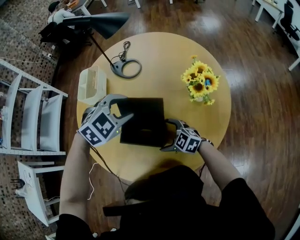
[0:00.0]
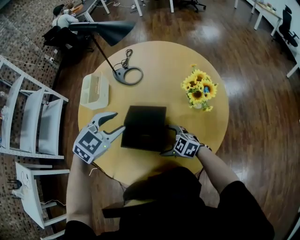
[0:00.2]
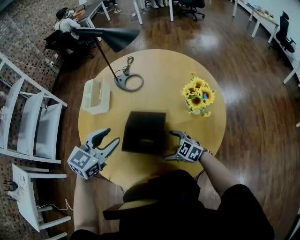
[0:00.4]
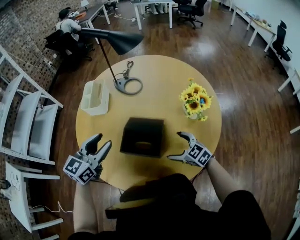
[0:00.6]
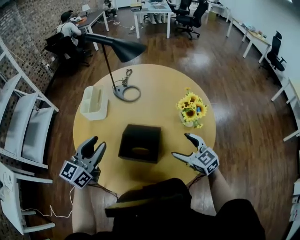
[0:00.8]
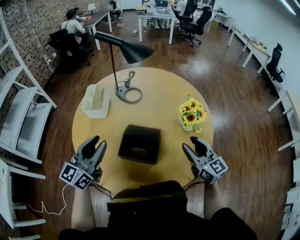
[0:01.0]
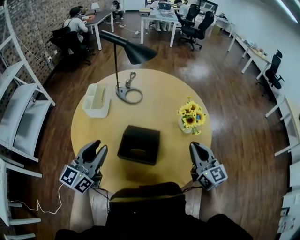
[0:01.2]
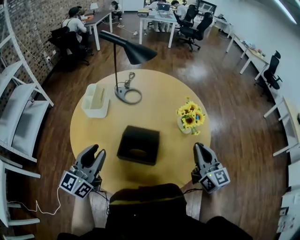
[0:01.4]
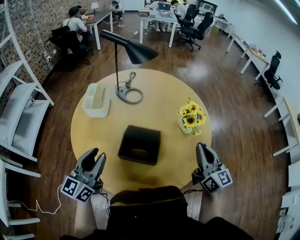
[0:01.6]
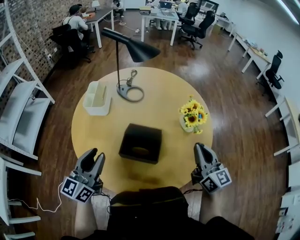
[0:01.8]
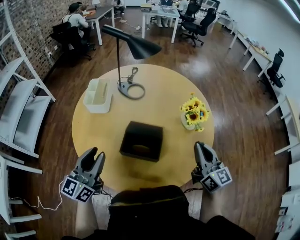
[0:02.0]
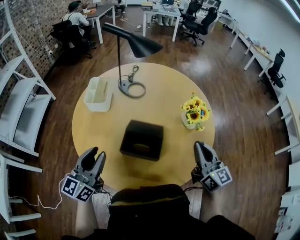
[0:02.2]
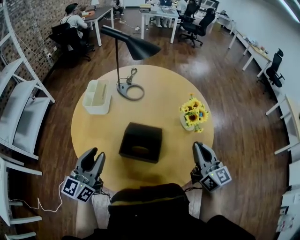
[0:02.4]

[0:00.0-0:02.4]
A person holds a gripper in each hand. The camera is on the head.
0.0 to 1.2 s: The left gripper travels to the left and backward by about 20 cm, and points its fingers roughly 50 degrees further upward. The right gripper travels upward and to the right by about 30 cm, tilts its fingers some 30 degrees upward, and closes.
1.2 to 2.4 s: There are only small adjustments of the grippers.

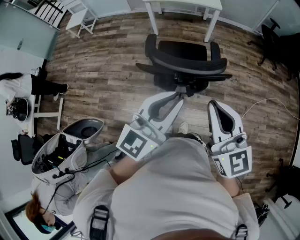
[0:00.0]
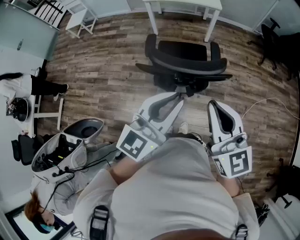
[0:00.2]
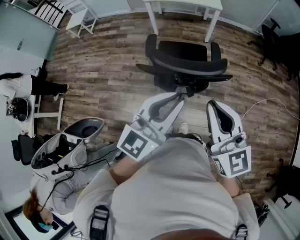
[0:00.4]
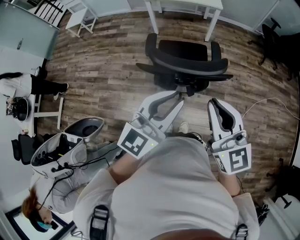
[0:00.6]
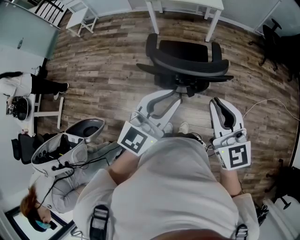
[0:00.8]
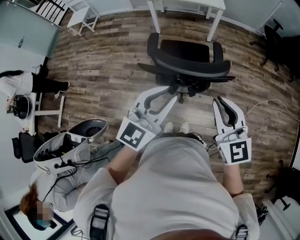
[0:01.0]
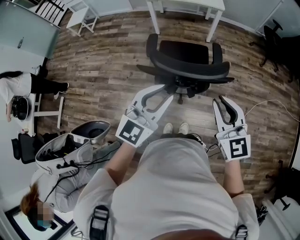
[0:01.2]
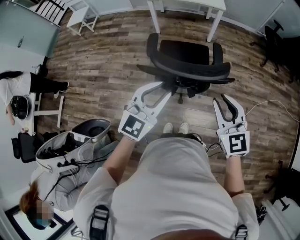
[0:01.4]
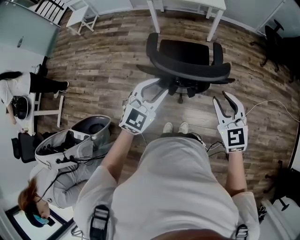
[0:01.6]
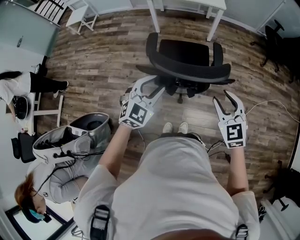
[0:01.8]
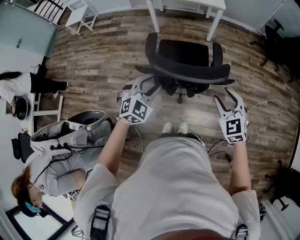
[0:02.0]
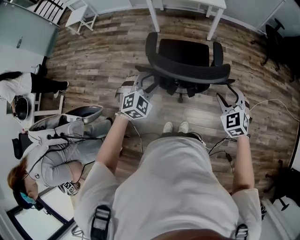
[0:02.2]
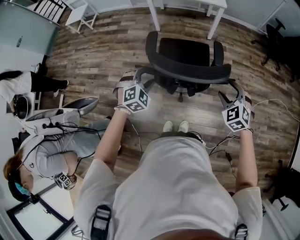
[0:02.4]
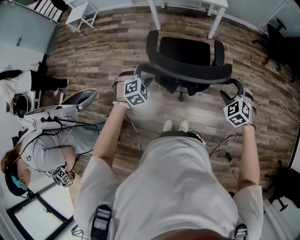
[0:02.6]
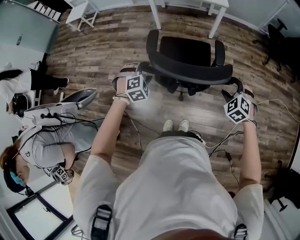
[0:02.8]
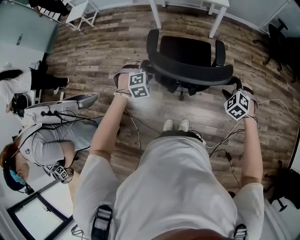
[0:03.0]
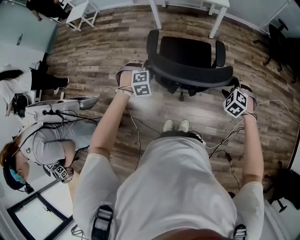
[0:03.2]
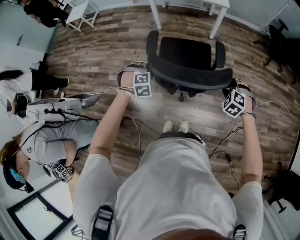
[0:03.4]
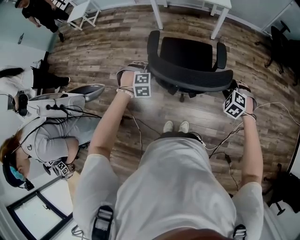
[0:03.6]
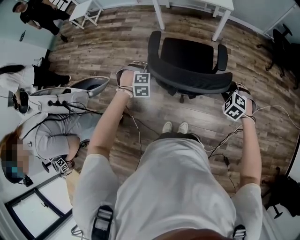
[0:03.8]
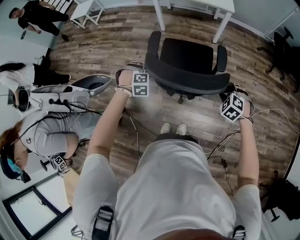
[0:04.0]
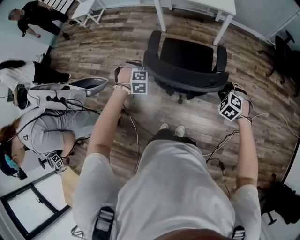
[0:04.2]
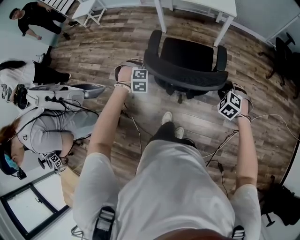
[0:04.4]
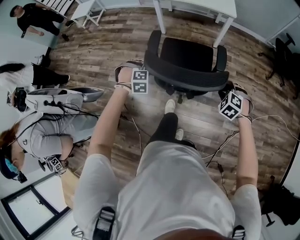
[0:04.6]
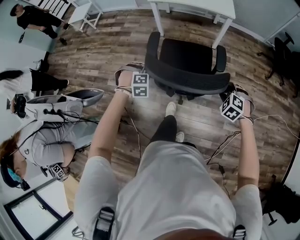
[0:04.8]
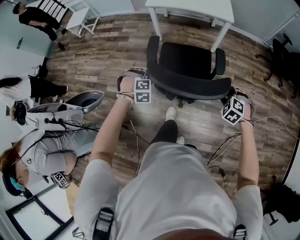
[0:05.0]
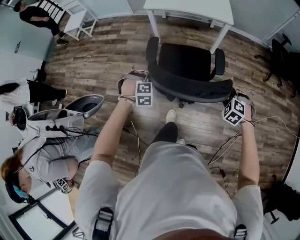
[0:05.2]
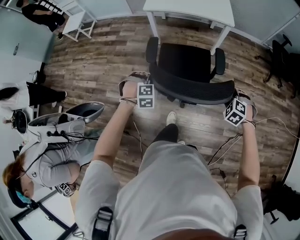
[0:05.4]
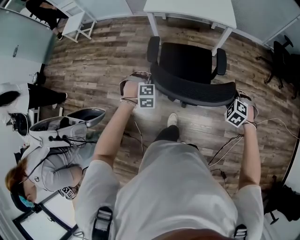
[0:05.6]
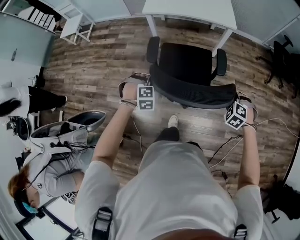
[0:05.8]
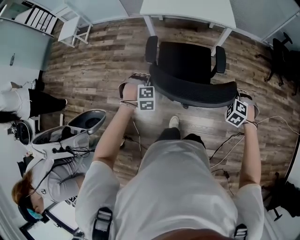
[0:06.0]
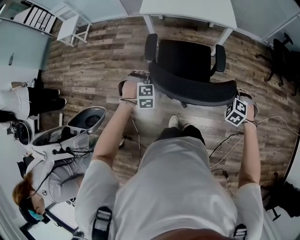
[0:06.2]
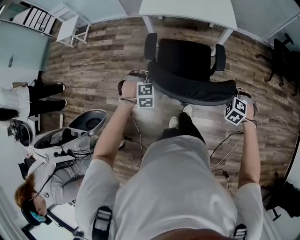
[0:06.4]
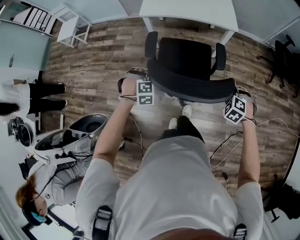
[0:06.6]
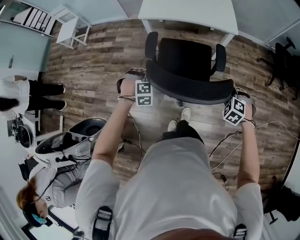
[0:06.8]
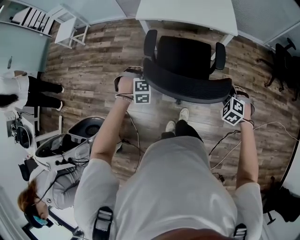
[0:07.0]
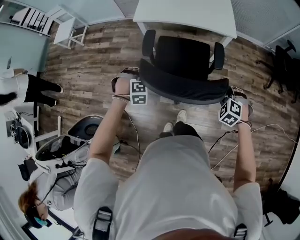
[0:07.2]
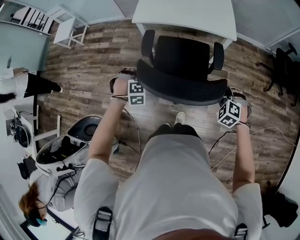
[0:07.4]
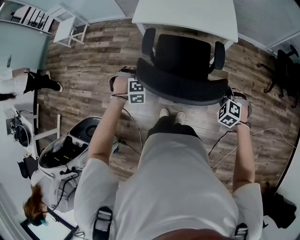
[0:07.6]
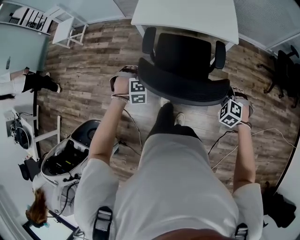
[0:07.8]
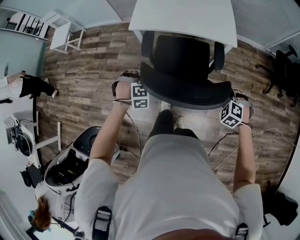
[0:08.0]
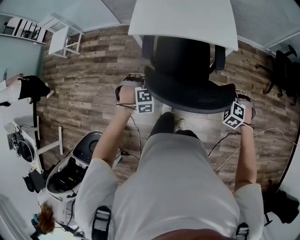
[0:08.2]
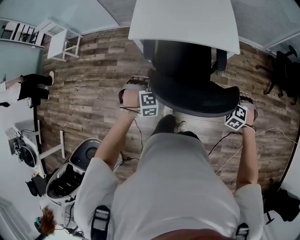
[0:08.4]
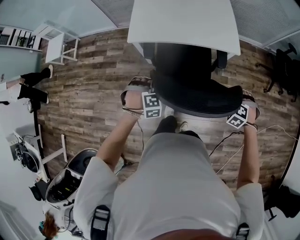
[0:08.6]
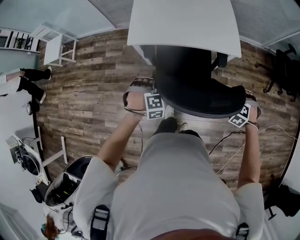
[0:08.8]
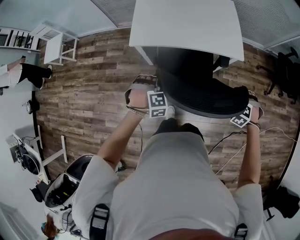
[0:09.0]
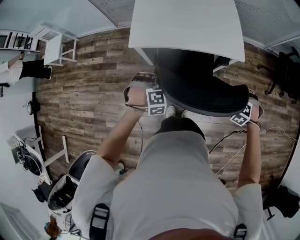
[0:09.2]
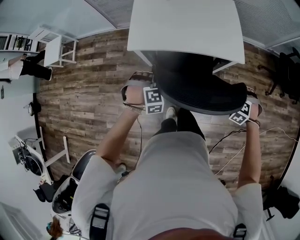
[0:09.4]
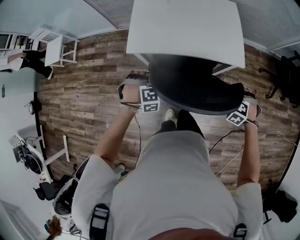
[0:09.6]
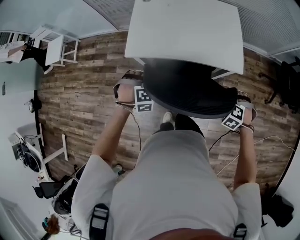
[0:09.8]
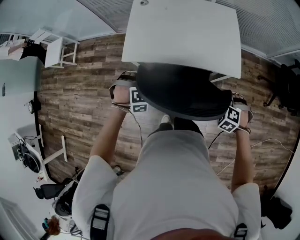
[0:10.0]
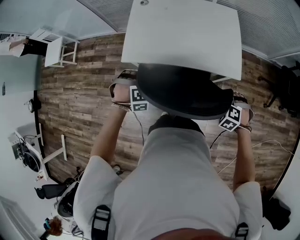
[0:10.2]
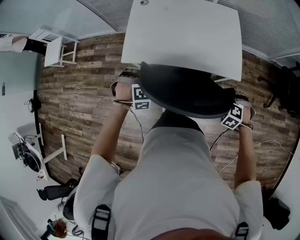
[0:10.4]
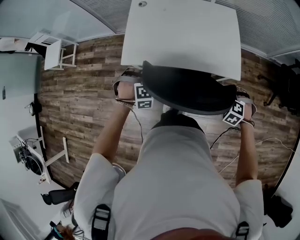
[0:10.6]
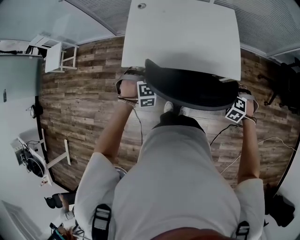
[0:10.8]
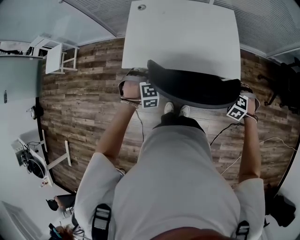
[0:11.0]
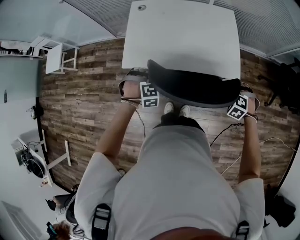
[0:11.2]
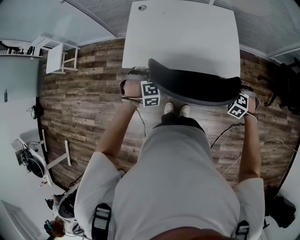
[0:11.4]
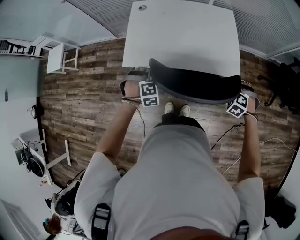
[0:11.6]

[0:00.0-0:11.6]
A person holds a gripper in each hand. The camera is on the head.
0.0 to 1.4 s: Both grippers move downward and forward, about 10 cm. The left gripper rotates some 20 degrees.
1.4 to 2.8 s: The right gripper shifts some 20 cm downward, forward and to the right, tilts its fingers roughly 40 degrees downward, and opens; the left gripper moves downward, forward and to the left, about 25 cm, points its fingers approximately 50 degrees further downward, and opens up.
2.8 to 4.4 s: The right gripper travels forward and downward by approximately 10 cm, while the left gripper moves downward and forward, some 10 cm, and closes.
4.4 to 5.8 s: The grippers both shift forward by some 15 cm.
5.8 to 7.2 s: The grippers both shift forward by approximately 15 cm.
7.2 to 8.8 s: Both grippers travel together forward, roughly 20 cm.
8.8 to 10.2 s: Both grippers travel together forward, roughly 15 cm.
10.2 to 11.6 s: The left gripper changes place by about 5 cm. The right gripper goes roughly 5 cm to the right.

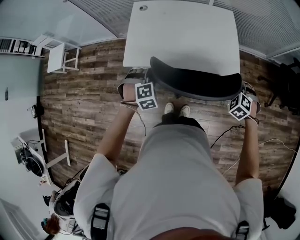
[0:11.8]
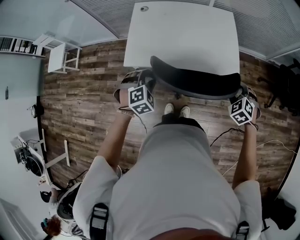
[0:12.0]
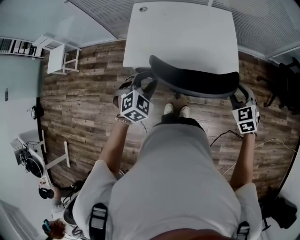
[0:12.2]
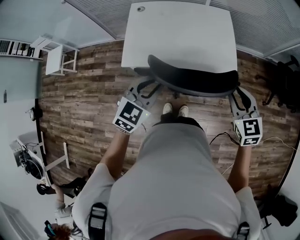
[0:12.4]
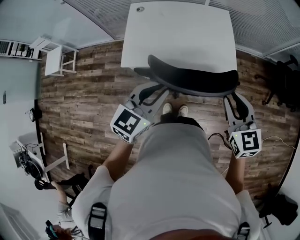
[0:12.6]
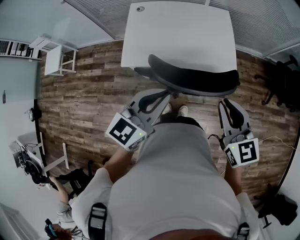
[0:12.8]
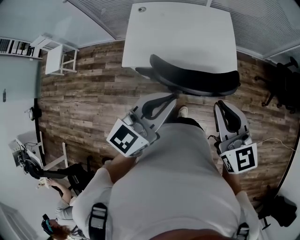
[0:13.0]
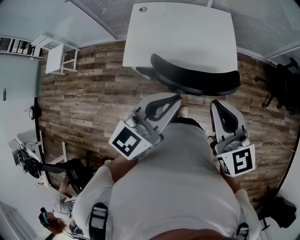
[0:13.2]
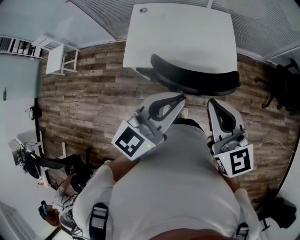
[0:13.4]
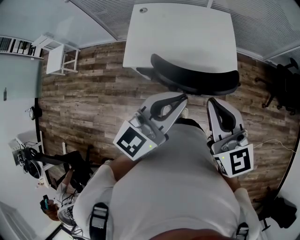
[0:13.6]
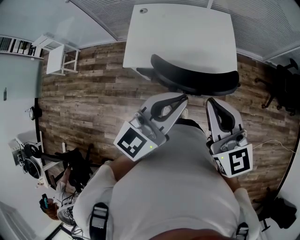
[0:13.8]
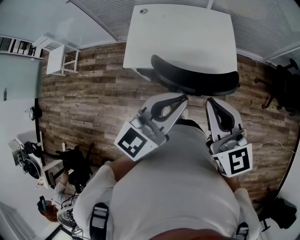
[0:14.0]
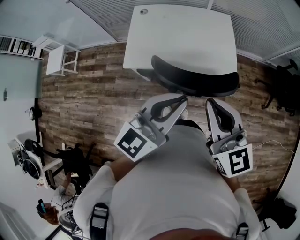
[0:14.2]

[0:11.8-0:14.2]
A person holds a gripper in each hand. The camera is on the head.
11.8 to 13.0 s: The left gripper moves upward, approximately 30 cm, tips its fingers upward by some 60 degrees, and closes its fingers, while the right gripper heads upward, to the left and backward, covering approximately 35 cm, points its fingers some 50 degrees further upward, and closes up.
13.0 to 14.2 s: The right gripper ends up approximately 5 cm from where it was.

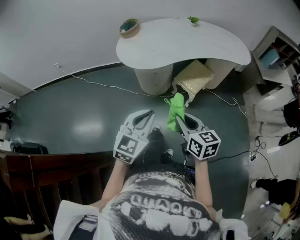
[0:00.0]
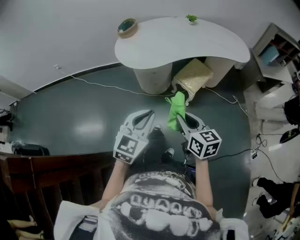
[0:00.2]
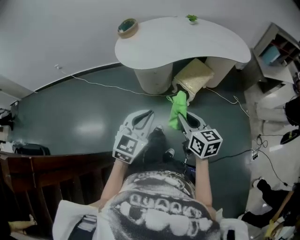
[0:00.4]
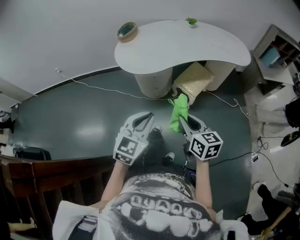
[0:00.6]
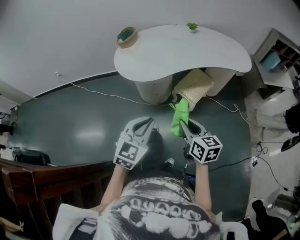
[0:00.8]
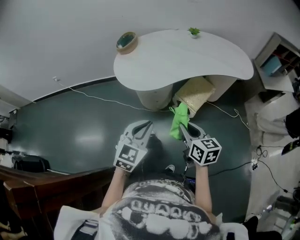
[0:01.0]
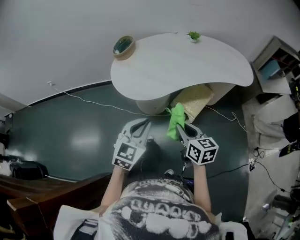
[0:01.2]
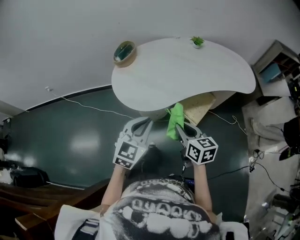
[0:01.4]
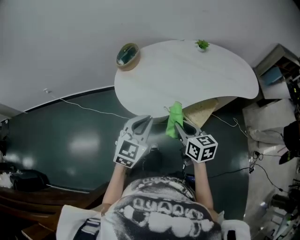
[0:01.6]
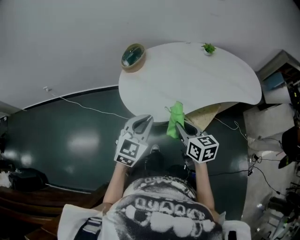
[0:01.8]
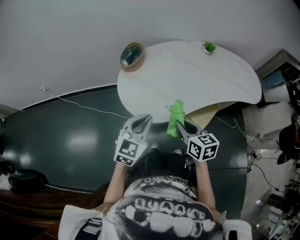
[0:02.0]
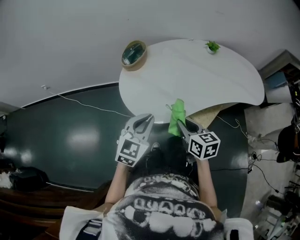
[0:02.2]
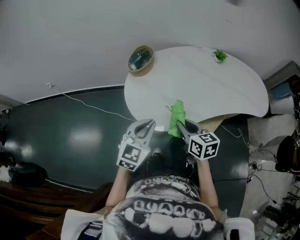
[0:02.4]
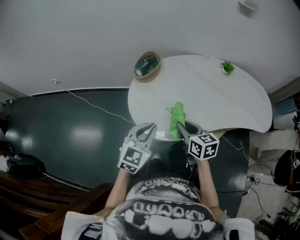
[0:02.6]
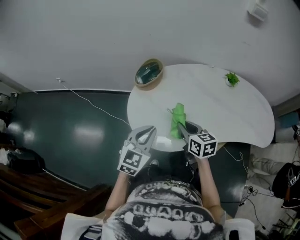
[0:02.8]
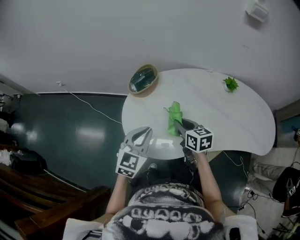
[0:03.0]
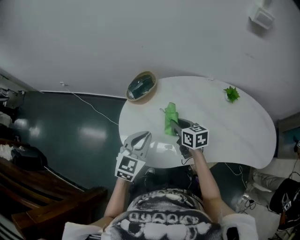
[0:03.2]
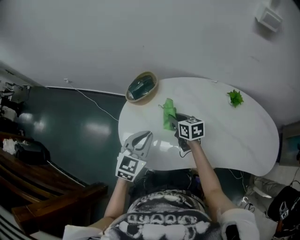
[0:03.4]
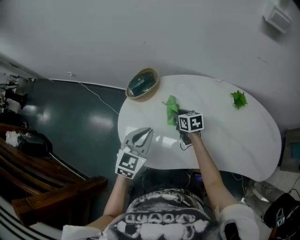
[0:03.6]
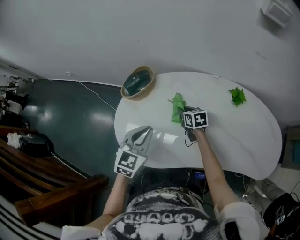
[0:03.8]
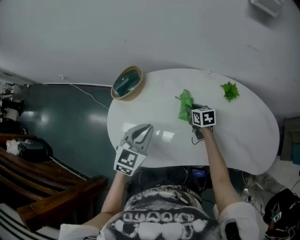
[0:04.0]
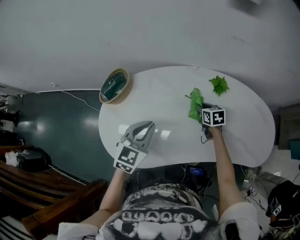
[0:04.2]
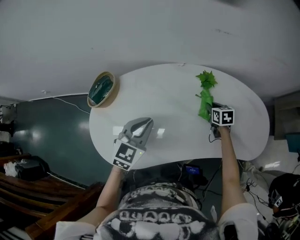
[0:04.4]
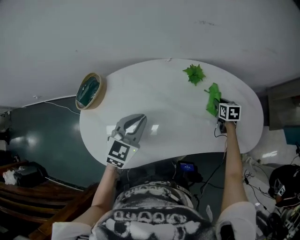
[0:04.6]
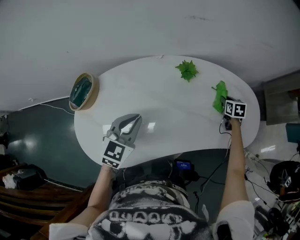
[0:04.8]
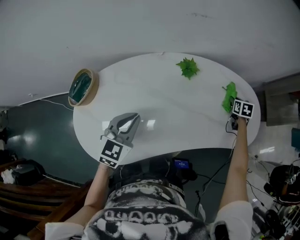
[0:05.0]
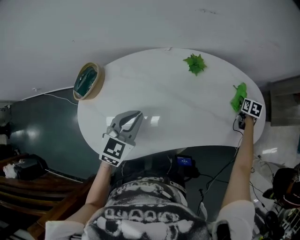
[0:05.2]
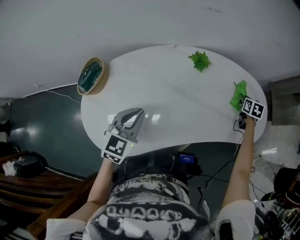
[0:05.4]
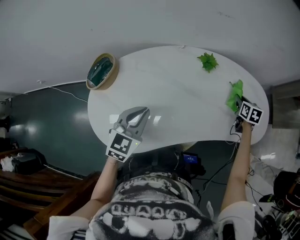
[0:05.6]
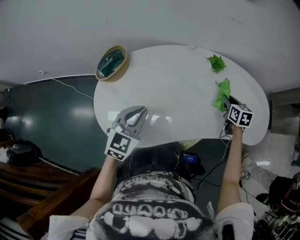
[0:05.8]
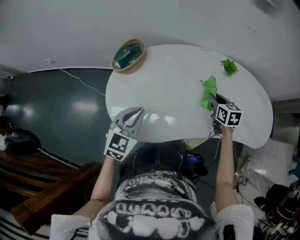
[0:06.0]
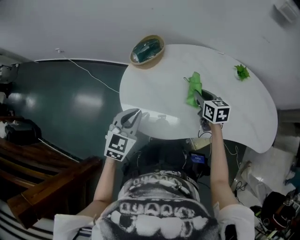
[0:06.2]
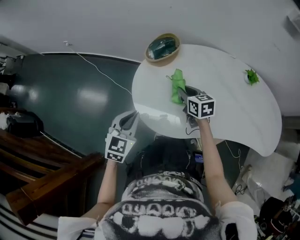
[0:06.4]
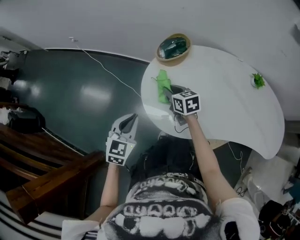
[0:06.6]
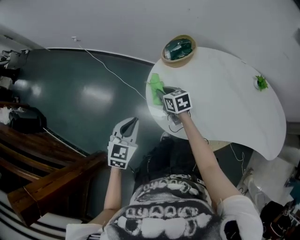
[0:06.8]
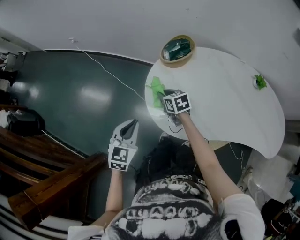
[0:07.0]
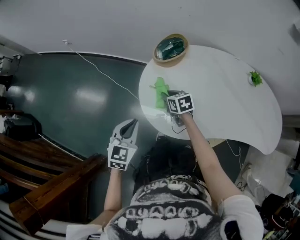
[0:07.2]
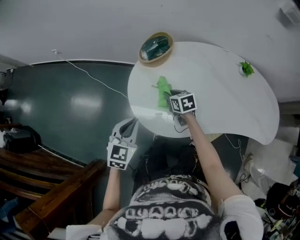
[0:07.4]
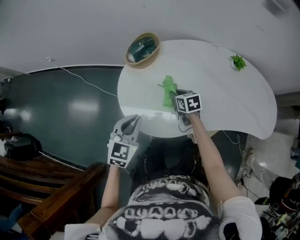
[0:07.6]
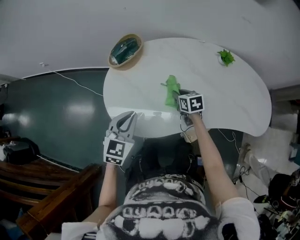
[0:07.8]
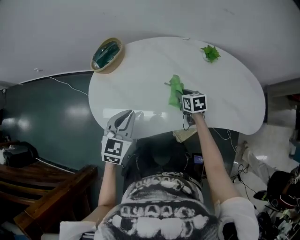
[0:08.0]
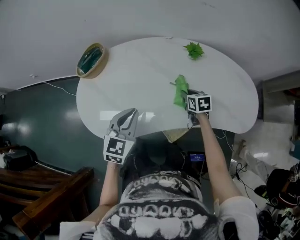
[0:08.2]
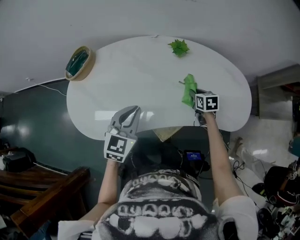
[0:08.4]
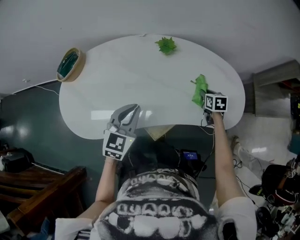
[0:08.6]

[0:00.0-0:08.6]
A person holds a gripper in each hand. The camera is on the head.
0.0 to 1.4 s: Both grippers move forward, approximately 25 cm.
1.4 to 2.8 s: The grippers both shift forward by about 25 cm.
2.8 to 4.4 s: The left gripper moves approximately 30 cm, while the right gripper shifts by about 50 cm, and turns by approximately 20 degrees.
4.4 to 5.8 s: The left gripper is displaced backward and to the left by approximately 10 cm, while the right gripper moves upward and backward, roughly 10 cm, and travels to the right and back again, about 30 cm each way.
5.8 to 7.2 s: The right gripper changes place by roughly 60 cm, and changes its angle by about 40 degrees, while the left gripper ends up roughly 35 cm from where it was, and rotates some 30 degrees.
7.2 to 8.6 s: The pair of grippers is taken approximately 60 cm. The left gripper rotates some 20 degrees; the right gripper rotates about 40 degrees.
